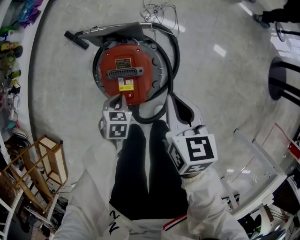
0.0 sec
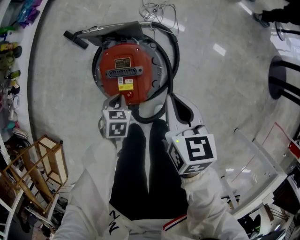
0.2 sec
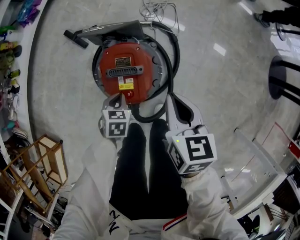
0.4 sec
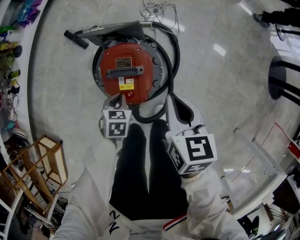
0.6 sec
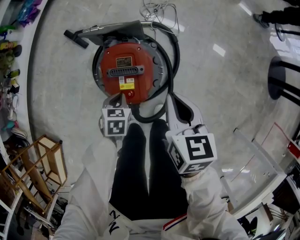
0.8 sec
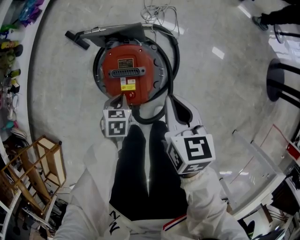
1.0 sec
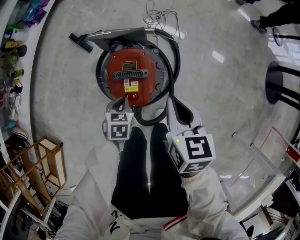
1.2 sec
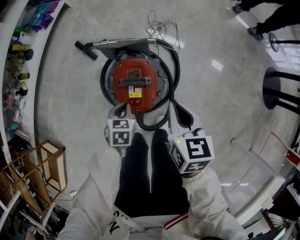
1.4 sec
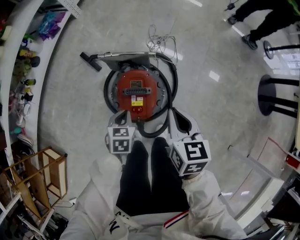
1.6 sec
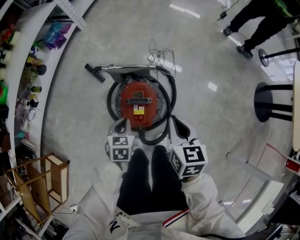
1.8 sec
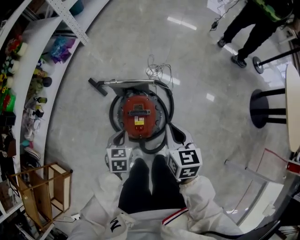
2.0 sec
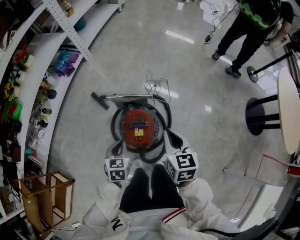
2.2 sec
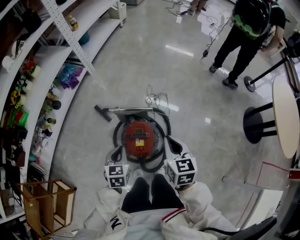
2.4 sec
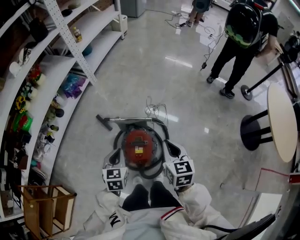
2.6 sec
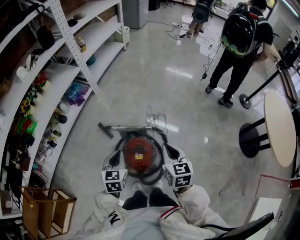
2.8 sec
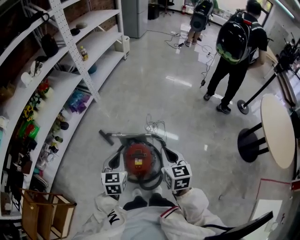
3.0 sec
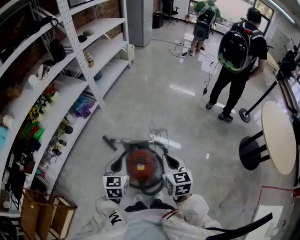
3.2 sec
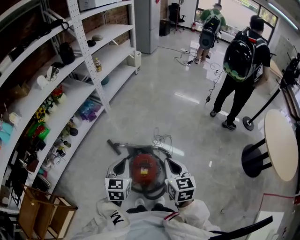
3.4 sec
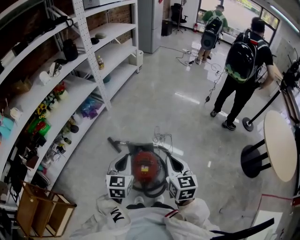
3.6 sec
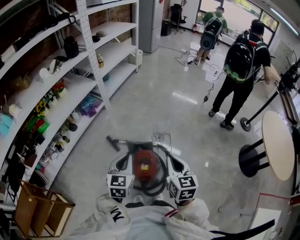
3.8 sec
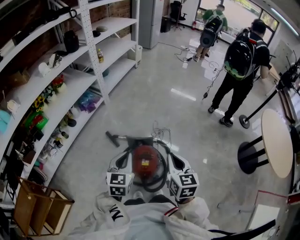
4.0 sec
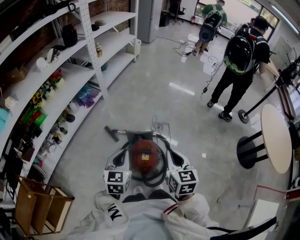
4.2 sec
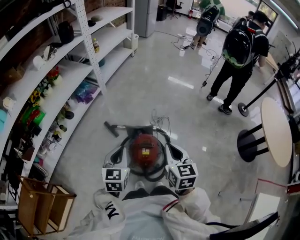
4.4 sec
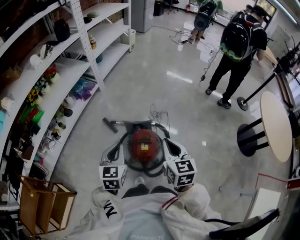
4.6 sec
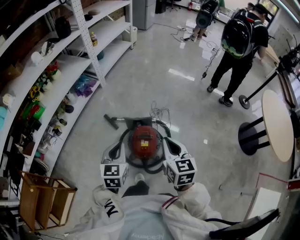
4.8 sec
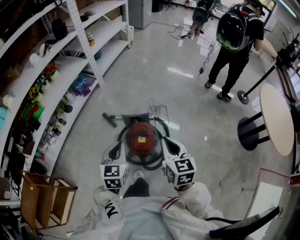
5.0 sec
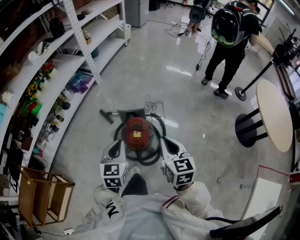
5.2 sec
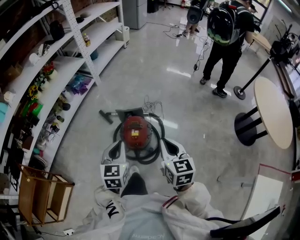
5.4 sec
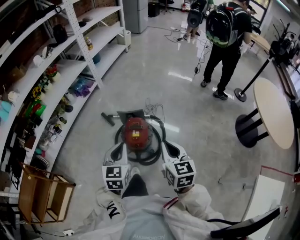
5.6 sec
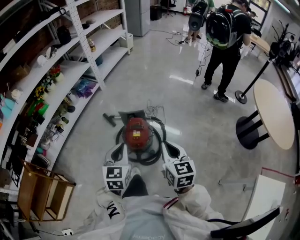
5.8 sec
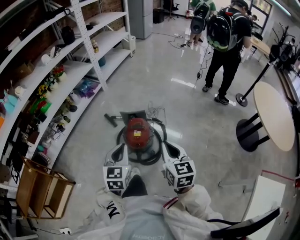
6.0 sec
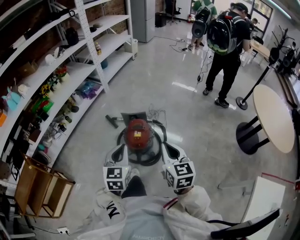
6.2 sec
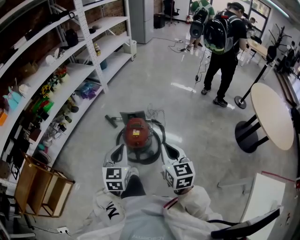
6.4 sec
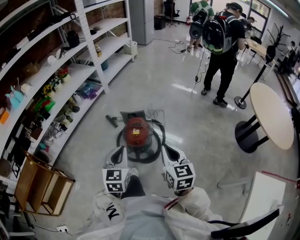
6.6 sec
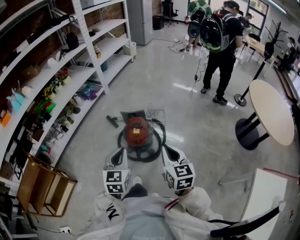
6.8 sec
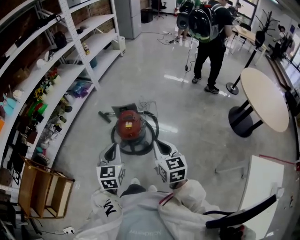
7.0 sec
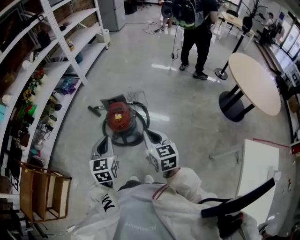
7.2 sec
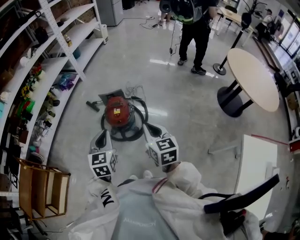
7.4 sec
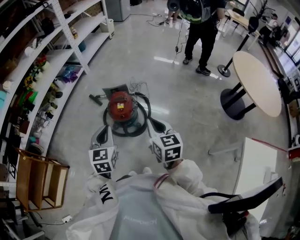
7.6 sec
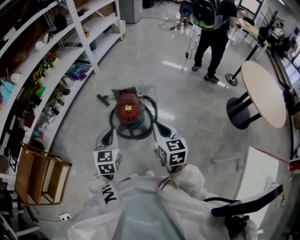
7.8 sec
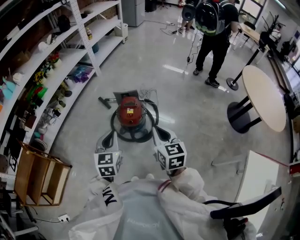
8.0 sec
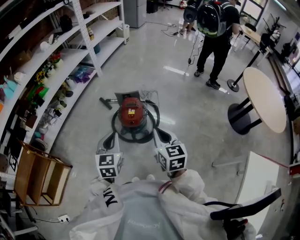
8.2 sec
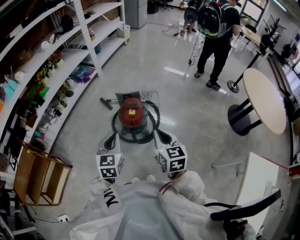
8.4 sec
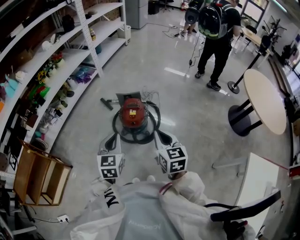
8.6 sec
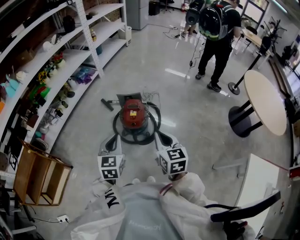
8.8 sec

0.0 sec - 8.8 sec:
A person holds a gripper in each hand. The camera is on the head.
0.0 sec - 1.4 sec: The grippers make only small movements.
1.4 sec - 3.0 sec: The left gripper shifts about 35 cm upward, and angles its fingers upward, by roughly 30 degrees, while the right gripper moves upward, roughly 25 cm.
3.0 sec - 4.4 sec: The right gripper is displaced to the left and backward by roughly 10 cm. The left gripper moves backward and to the left, roughly 5 cm.
4.4 sec - 5.8 sec: The two grippers go about 15 cm backward and to the right.
5.8 sec - 7.4 sec: Both grippers move backward, approximately 10 cm.
7.4 sec - 8.8 sec: The left gripper shifts by some 5 cm.

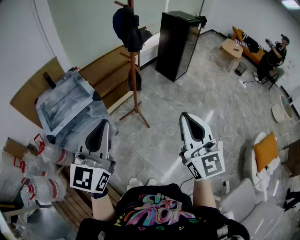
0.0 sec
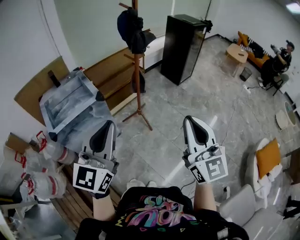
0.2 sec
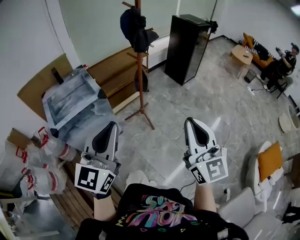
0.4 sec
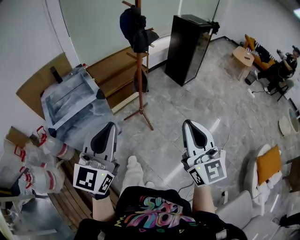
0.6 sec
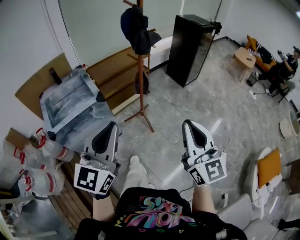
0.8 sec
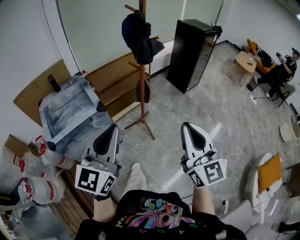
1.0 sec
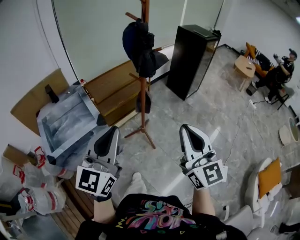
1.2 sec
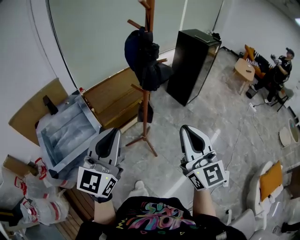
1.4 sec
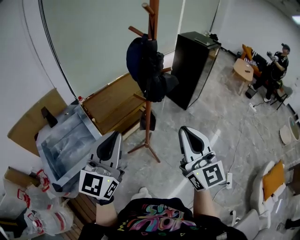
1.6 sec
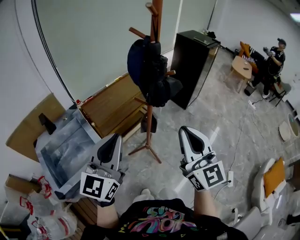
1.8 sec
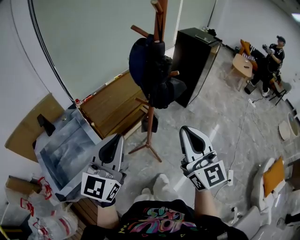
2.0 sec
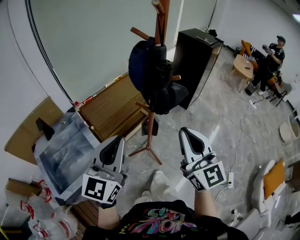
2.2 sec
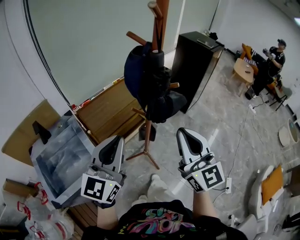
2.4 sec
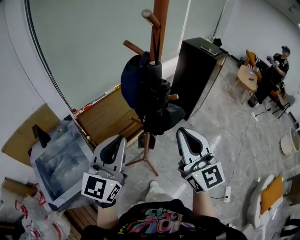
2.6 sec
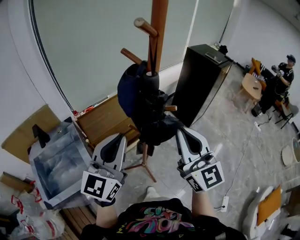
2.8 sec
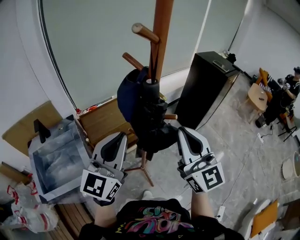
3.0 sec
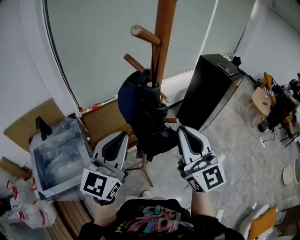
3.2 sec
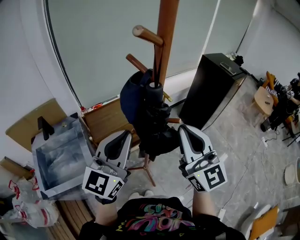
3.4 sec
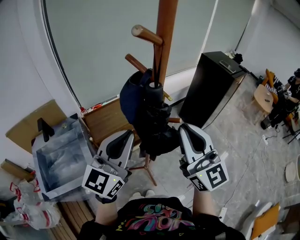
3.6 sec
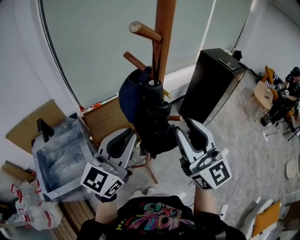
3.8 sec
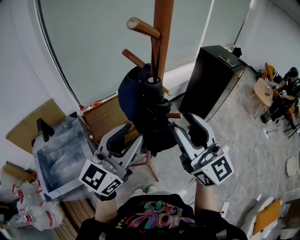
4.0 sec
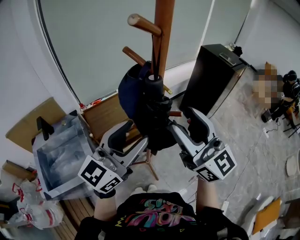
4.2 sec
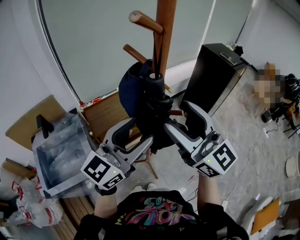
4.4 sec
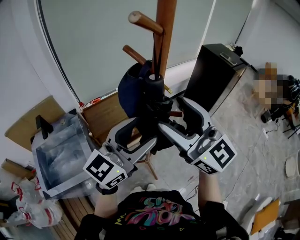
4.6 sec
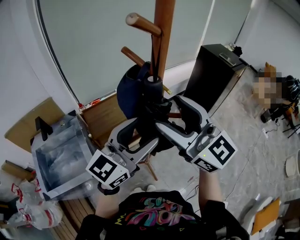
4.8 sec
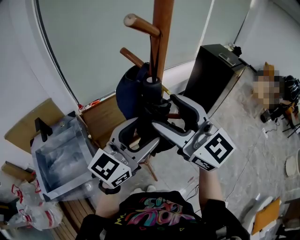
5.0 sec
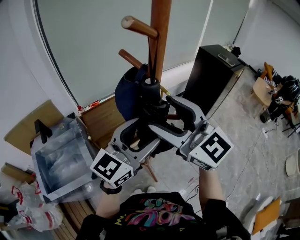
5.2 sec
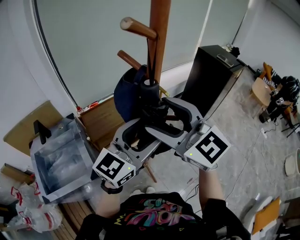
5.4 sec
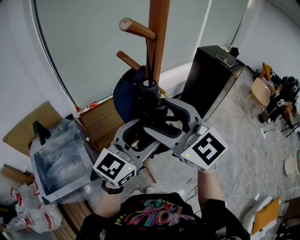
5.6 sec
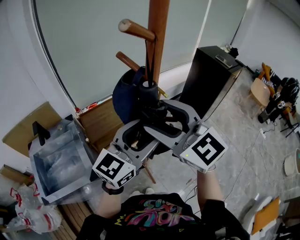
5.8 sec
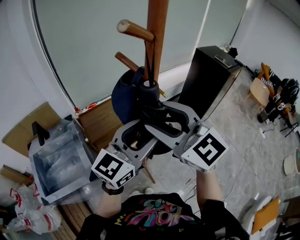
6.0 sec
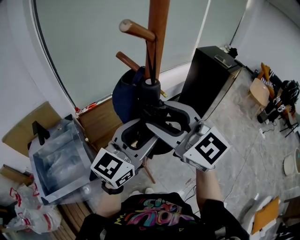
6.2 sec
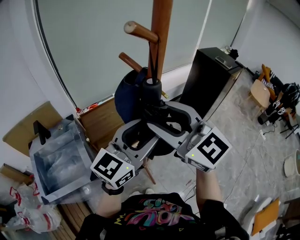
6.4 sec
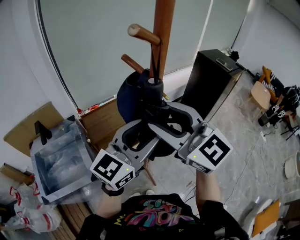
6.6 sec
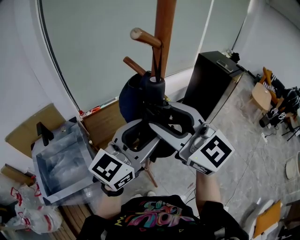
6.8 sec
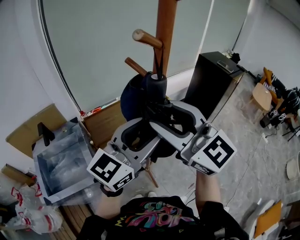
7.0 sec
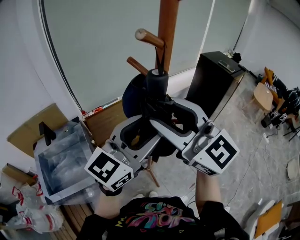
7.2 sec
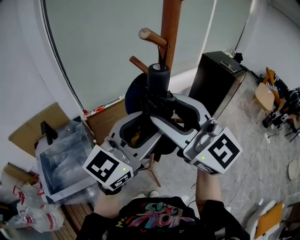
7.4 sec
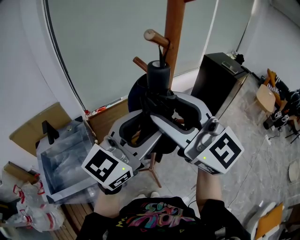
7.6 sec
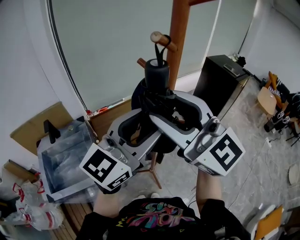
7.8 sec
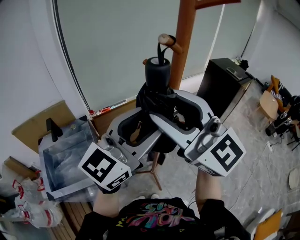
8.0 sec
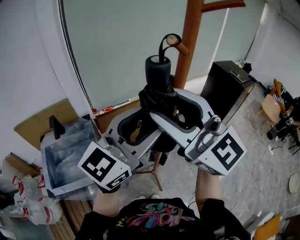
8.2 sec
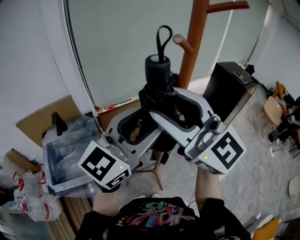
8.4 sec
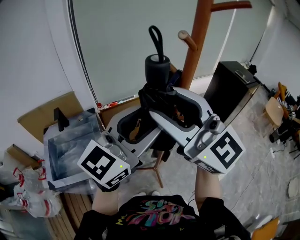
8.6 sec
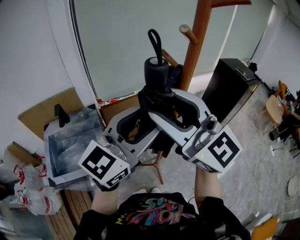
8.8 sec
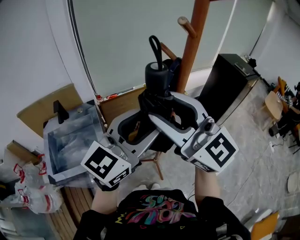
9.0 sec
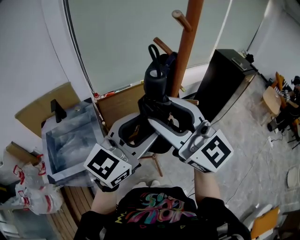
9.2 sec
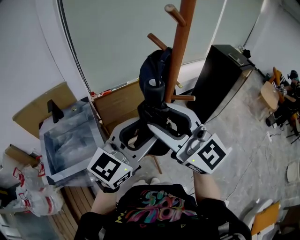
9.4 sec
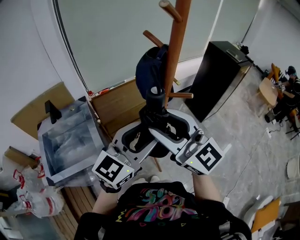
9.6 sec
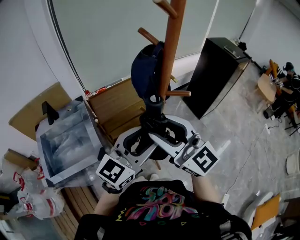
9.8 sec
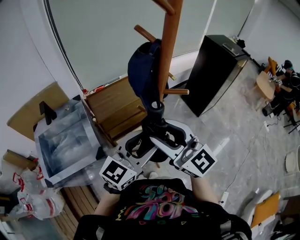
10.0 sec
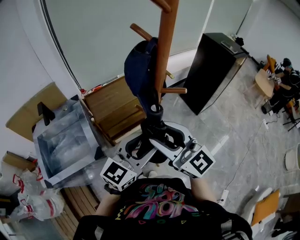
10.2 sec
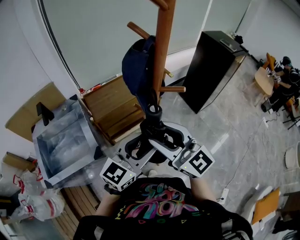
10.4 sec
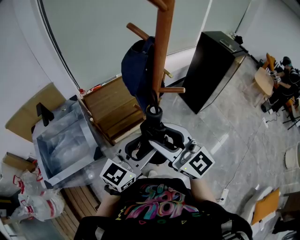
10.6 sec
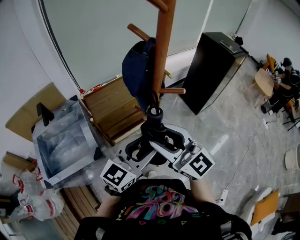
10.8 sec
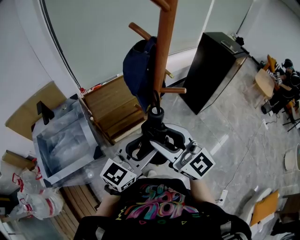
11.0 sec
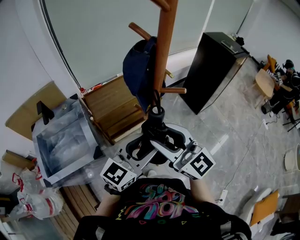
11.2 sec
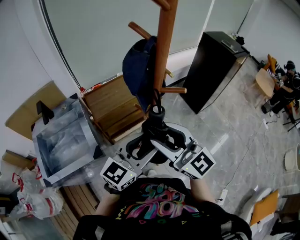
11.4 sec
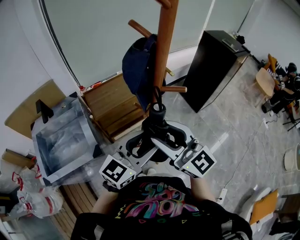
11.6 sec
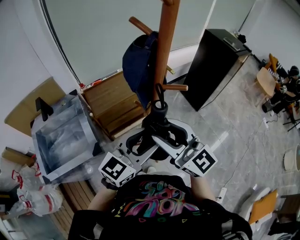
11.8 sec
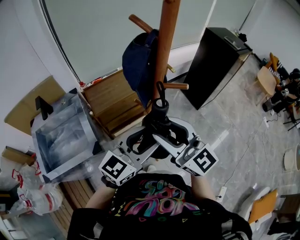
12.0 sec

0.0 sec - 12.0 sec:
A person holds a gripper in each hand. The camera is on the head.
0.0 sec - 1.6 sec: Both grippers travel together forward, roughly 30 cm.
1.6 sec - 3.0 sec: Both grippers move forward, some 20 cm.
3.0 sec - 4.4 sec: The left gripper ends up some 5 cm from where it was, and opens up; the right gripper moves roughly 5 cm, and opens up.
4.4 sec - 6.0 sec: The right gripper shifts by about 5 cm, and turns by about 20 degrees.
6.0 sec - 7.6 sec: The two grippers go about 10 cm upward.
7.6 sec - 9.0 sec: The left gripper shifts by roughly 5 cm, while the right gripper changes place by roughly 5 cm.
9.0 sec - 10.4 sec: The two grippers go some 20 cm downward.
10.4 sec - 12.0 sec: Neither gripper changes place.

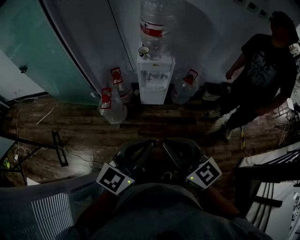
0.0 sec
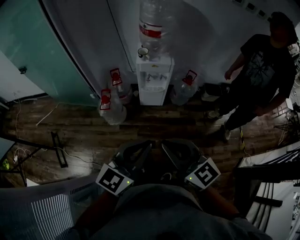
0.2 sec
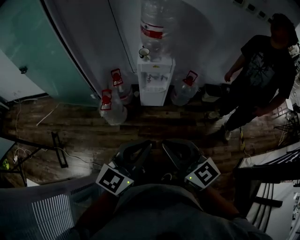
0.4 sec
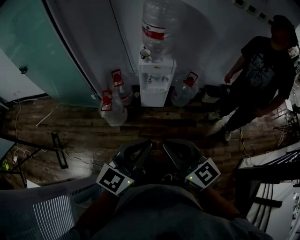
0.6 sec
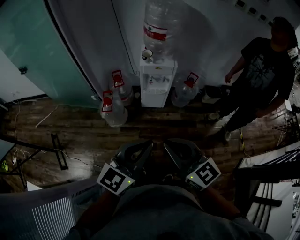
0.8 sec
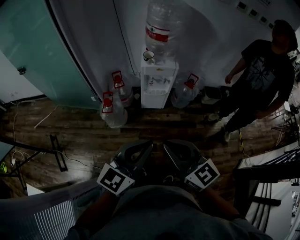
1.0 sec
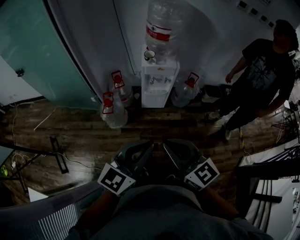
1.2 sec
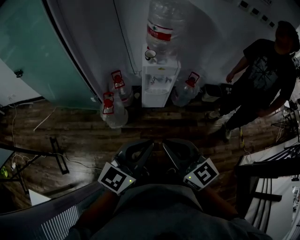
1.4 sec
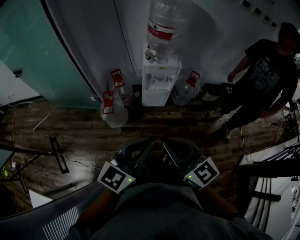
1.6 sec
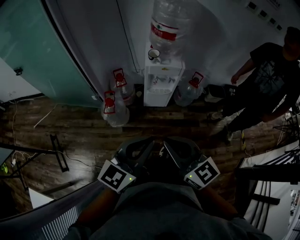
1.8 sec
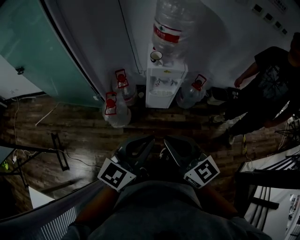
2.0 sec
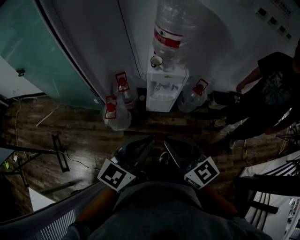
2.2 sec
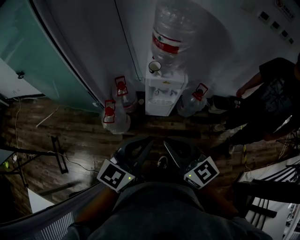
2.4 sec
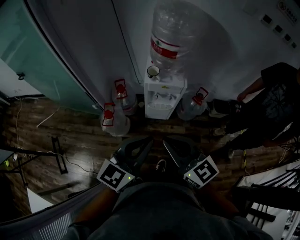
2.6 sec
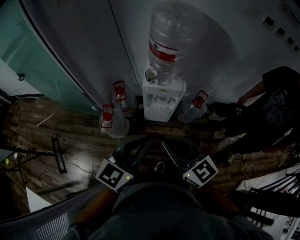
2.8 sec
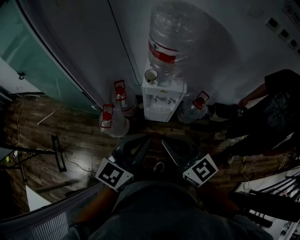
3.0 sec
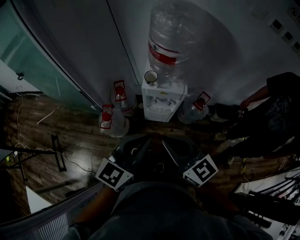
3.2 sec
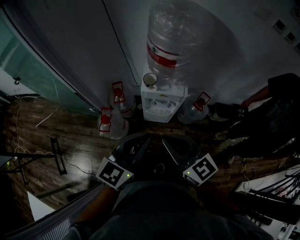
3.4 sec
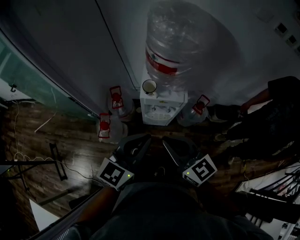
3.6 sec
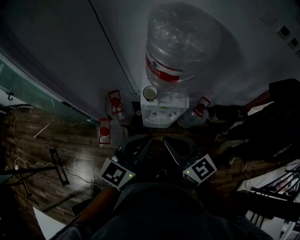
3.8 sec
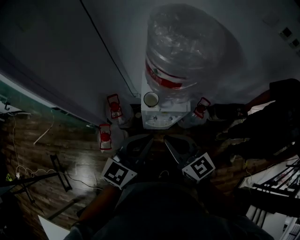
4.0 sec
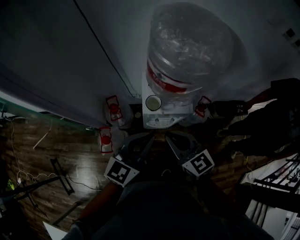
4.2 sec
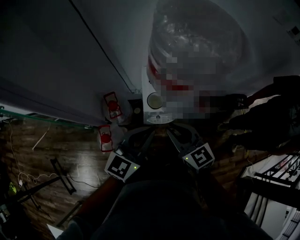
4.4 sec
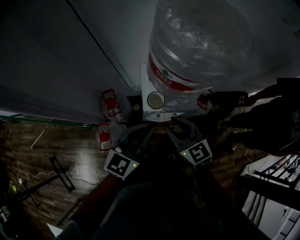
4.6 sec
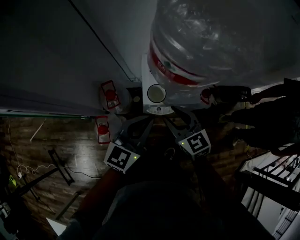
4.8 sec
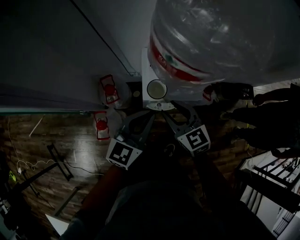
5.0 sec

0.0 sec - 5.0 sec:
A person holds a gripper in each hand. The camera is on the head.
0.0 sec - 1.6 sec: The two grippers go about 10 cm to the left and forward.
1.6 sec - 3.4 sec: The grippers both shift forward by roughly 25 cm.
3.4 sec - 5.0 sec: The grippers both shift forward and downward by some 30 cm. The right gripper swivels some 20 degrees, and opens up.
